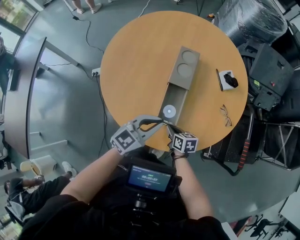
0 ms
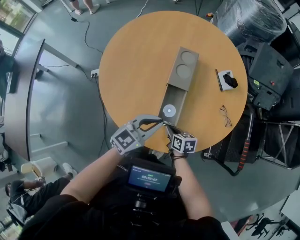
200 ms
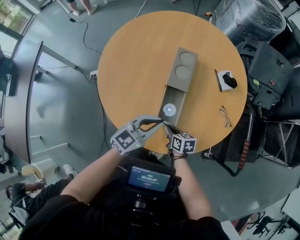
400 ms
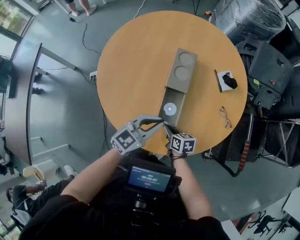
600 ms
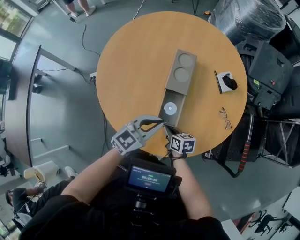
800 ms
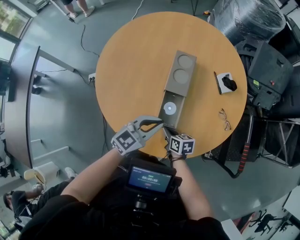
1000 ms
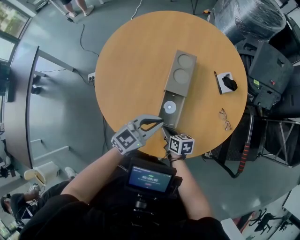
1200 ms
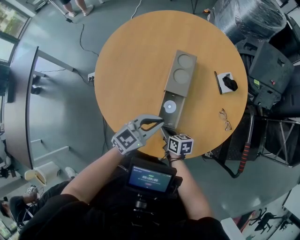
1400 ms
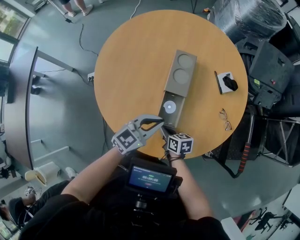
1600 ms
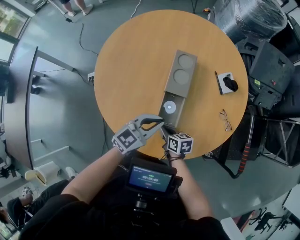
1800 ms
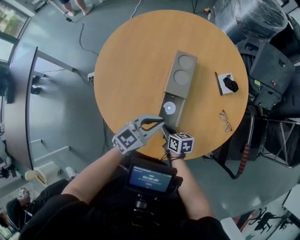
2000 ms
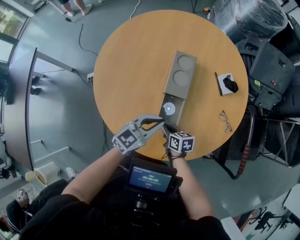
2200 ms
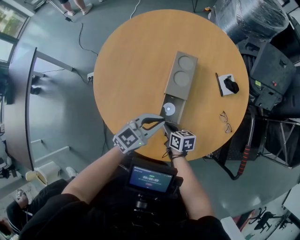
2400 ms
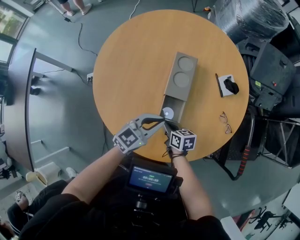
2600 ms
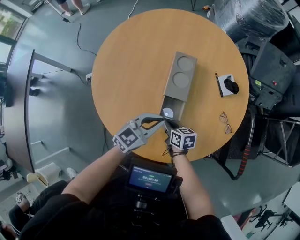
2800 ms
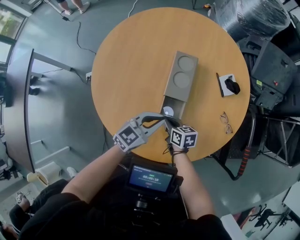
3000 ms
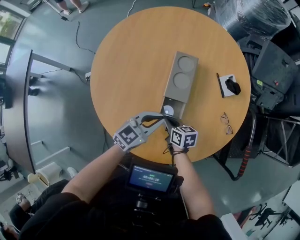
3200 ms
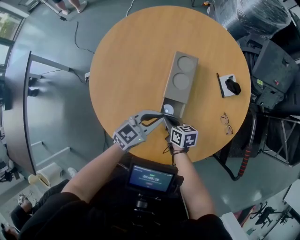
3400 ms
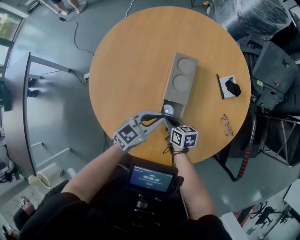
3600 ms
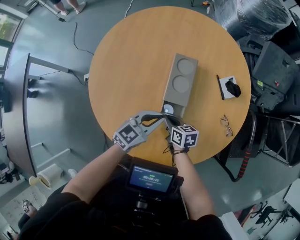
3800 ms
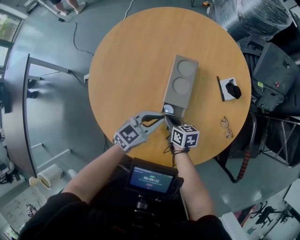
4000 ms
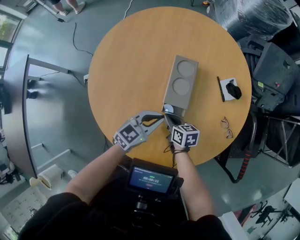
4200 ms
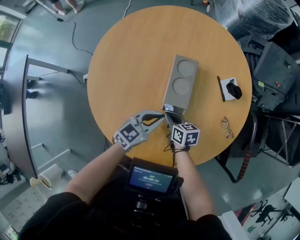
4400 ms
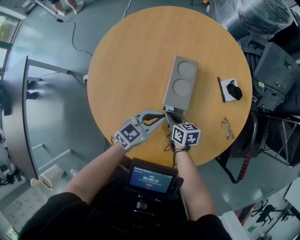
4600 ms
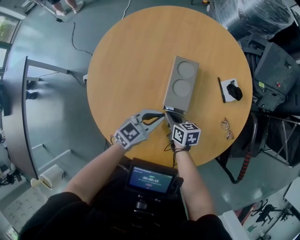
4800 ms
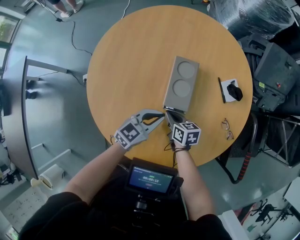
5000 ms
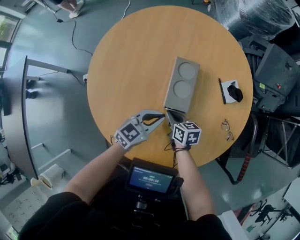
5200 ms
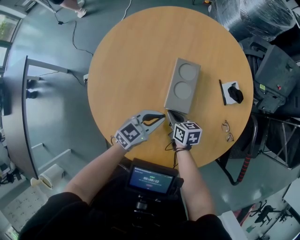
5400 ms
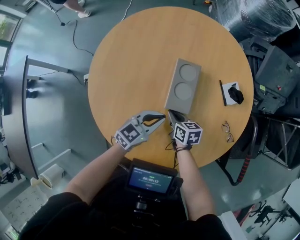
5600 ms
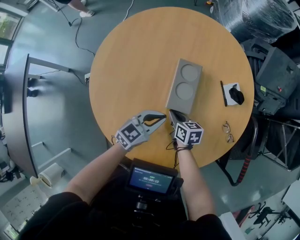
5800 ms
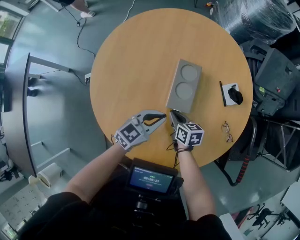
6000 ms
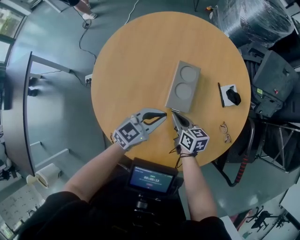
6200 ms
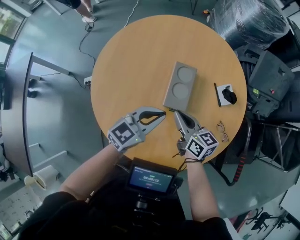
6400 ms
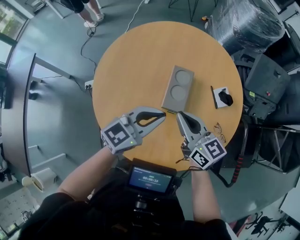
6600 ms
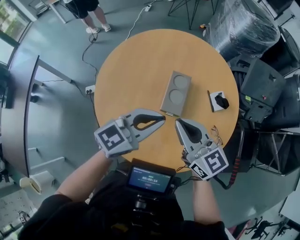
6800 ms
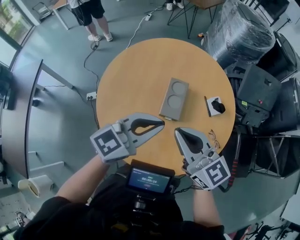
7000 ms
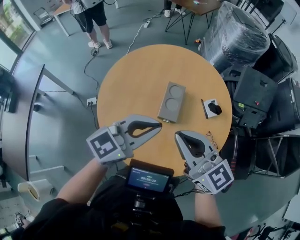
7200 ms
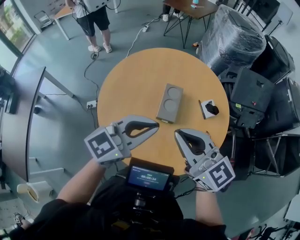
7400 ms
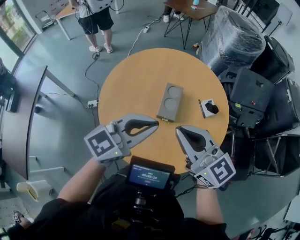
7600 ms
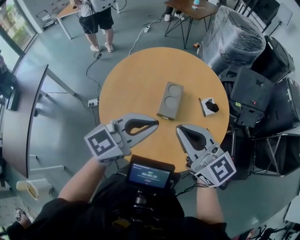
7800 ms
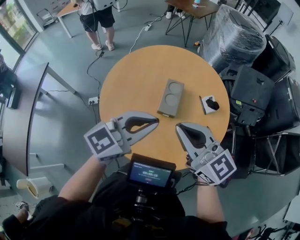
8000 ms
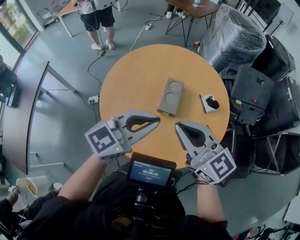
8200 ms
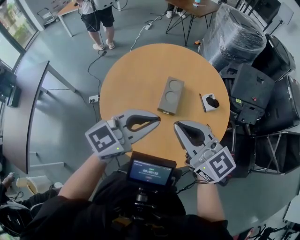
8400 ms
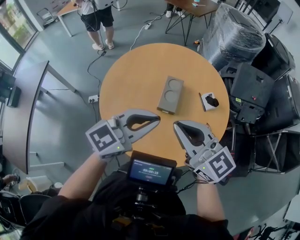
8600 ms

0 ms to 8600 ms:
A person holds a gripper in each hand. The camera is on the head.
0 ms to 1400 ms: The left gripper moves forward, about 5 cm; the right gripper shifts by approximately 5 cm.
1400 ms to 2800 ms: The right gripper is displaced forward by roughly 10 cm; the left gripper ends up some 5 cm from where it was.
2800 ms to 4400 ms: Both grippers travel together forward, roughly 10 cm.
4400 ms to 5800 ms: The grippers make only small movements.
5800 ms to 7200 ms: Both grippers move upward, approximately 40 cm. The right gripper points its fingers some 40 degrees further upward, while the left gripper swivels some 20 degrees.
7200 ms to 8600 ms: The two grippers go roughly 5 cm backward.

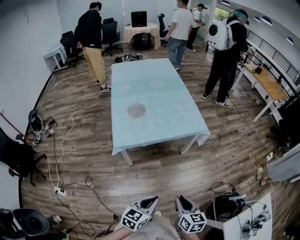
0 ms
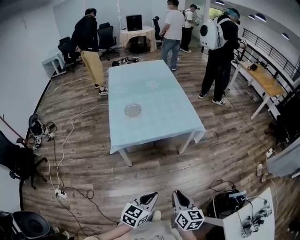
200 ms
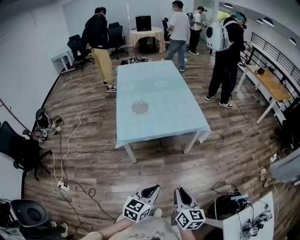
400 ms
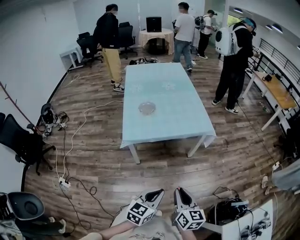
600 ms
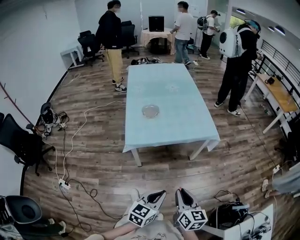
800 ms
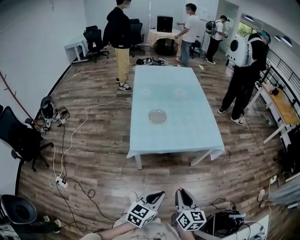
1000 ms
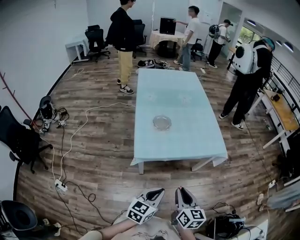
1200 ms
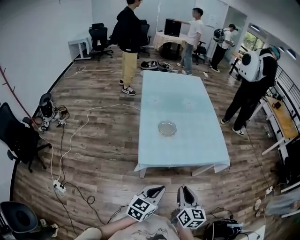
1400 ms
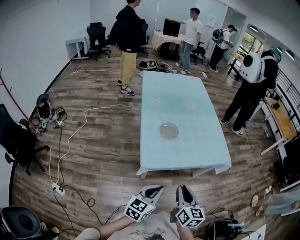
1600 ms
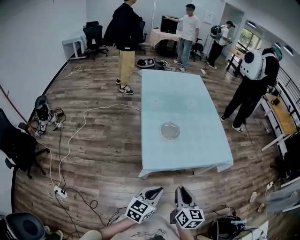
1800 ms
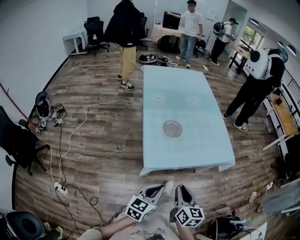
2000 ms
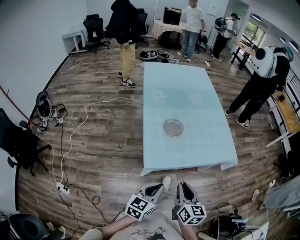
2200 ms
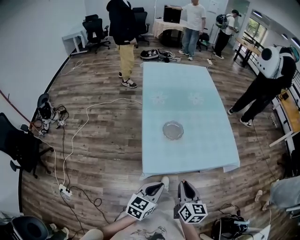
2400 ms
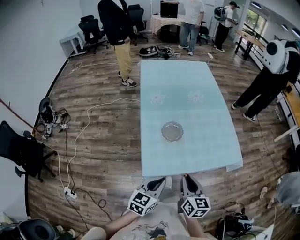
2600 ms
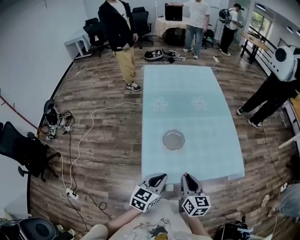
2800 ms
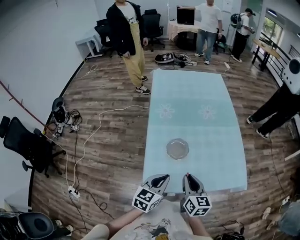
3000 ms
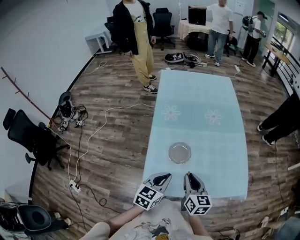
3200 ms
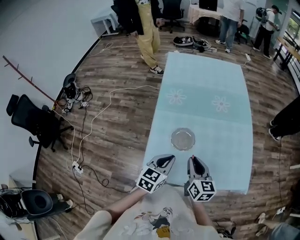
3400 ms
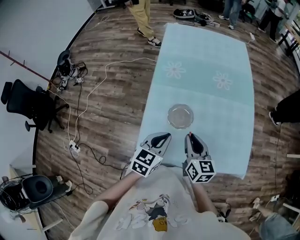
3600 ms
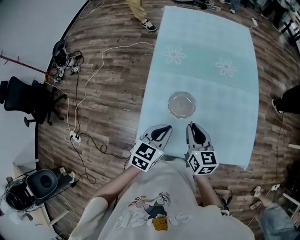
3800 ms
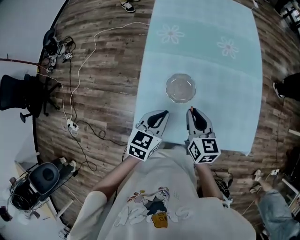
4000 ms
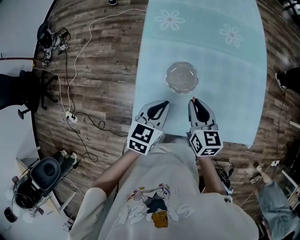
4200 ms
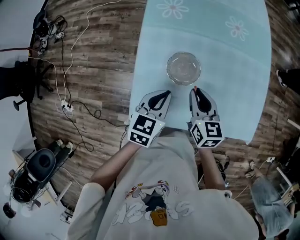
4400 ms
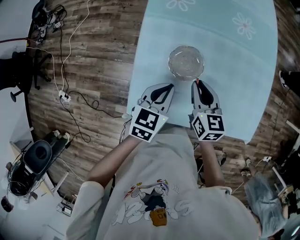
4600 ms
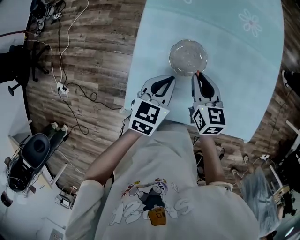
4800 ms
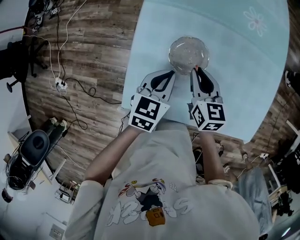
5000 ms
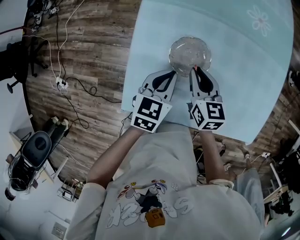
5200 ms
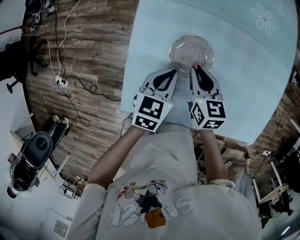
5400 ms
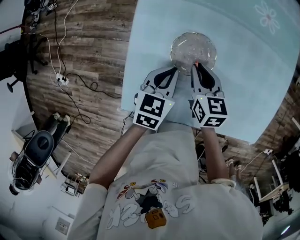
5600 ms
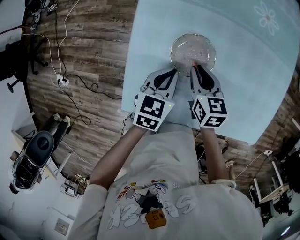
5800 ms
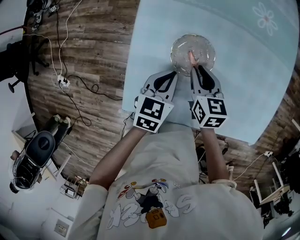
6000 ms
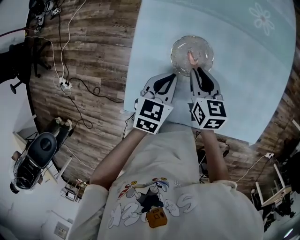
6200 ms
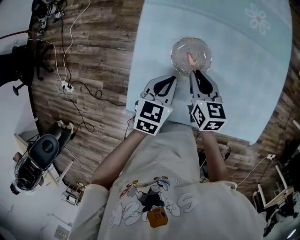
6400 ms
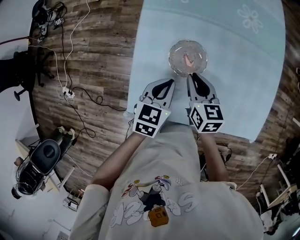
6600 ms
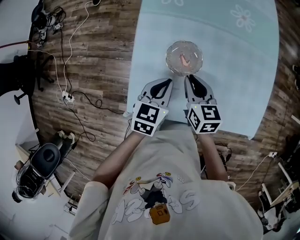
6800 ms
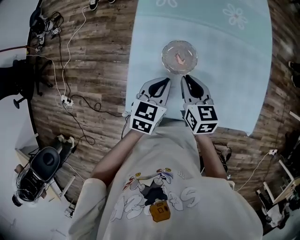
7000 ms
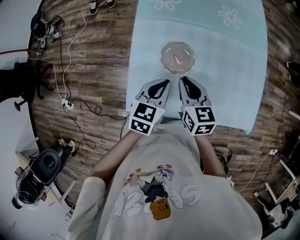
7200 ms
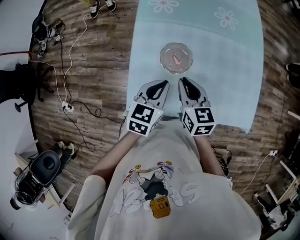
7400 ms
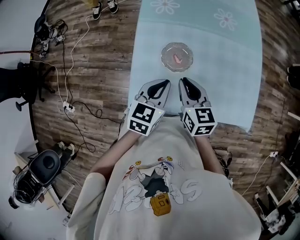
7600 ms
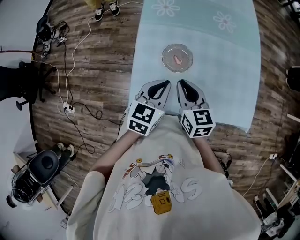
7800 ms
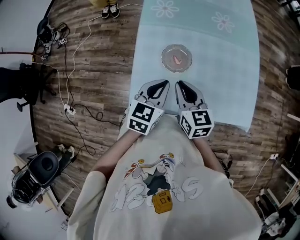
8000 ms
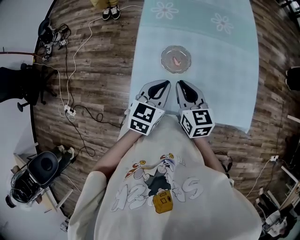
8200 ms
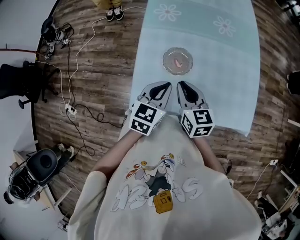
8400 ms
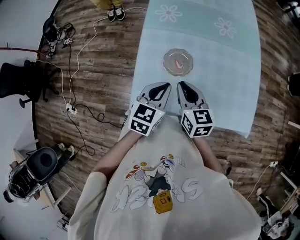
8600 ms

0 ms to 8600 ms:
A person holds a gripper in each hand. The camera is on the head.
0 ms to 1400 ms: The grippers both shift to the left and forward by roughly 25 cm.
1400 ms to 2800 ms: Both grippers travel together forward, some 25 cm.
2800 ms to 4400 ms: The grippers both shift forward and downward by roughly 20 cm. The right gripper changes its angle by approximately 20 degrees.
4400 ms to 5800 ms: The grippers both shift downward by about 15 cm.
5800 ms to 7200 ms: The left gripper heads upward, covering some 10 cm, while the right gripper heads upward and backward, covering some 15 cm.
7200 ms to 8600 ms: The left gripper is displaced upward by about 5 cm. Meanwhile the right gripper changes place by some 5 cm.

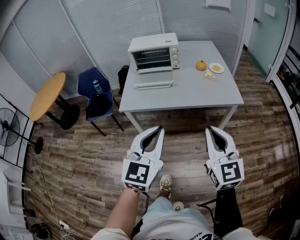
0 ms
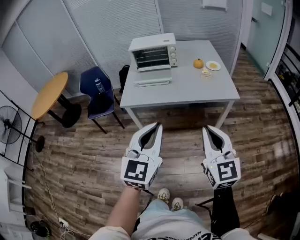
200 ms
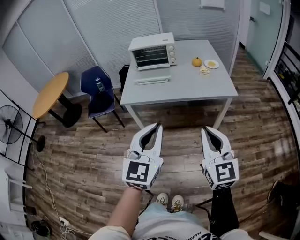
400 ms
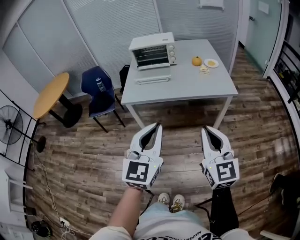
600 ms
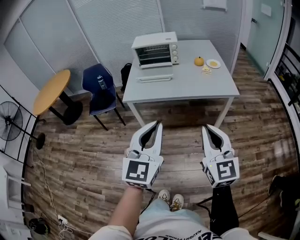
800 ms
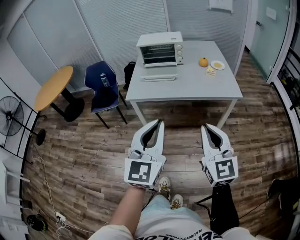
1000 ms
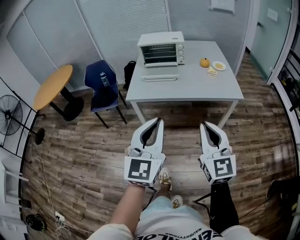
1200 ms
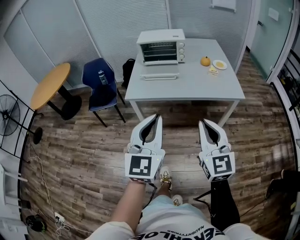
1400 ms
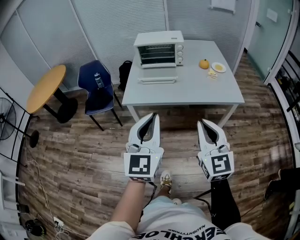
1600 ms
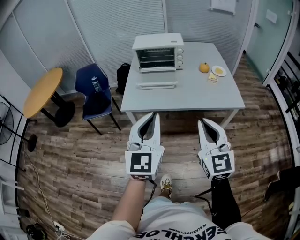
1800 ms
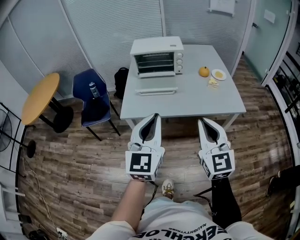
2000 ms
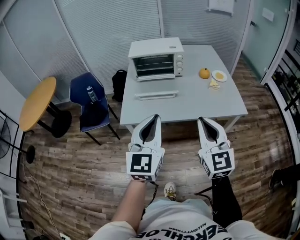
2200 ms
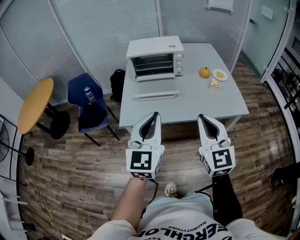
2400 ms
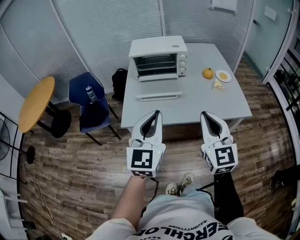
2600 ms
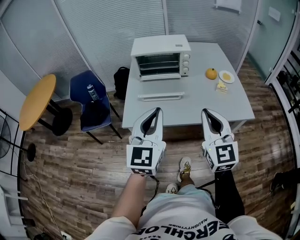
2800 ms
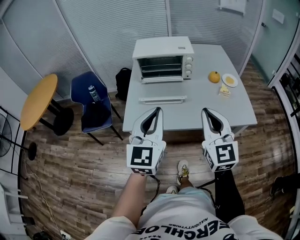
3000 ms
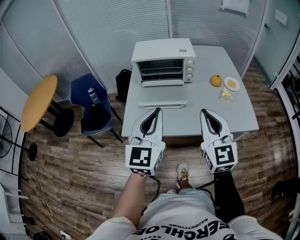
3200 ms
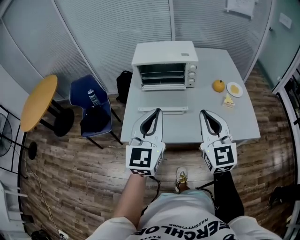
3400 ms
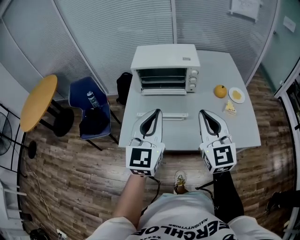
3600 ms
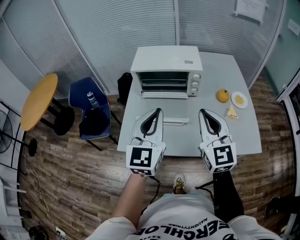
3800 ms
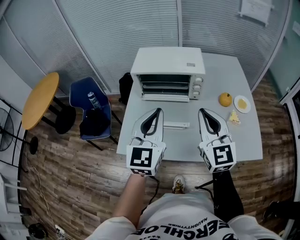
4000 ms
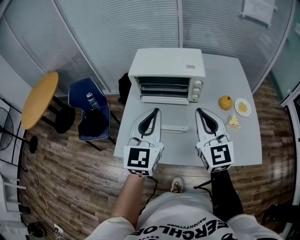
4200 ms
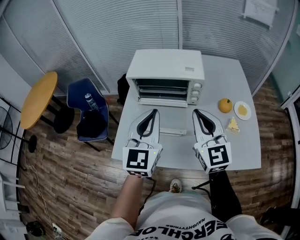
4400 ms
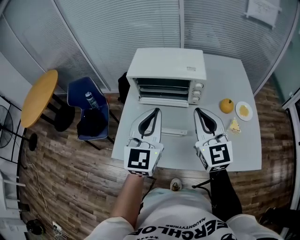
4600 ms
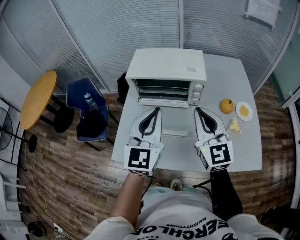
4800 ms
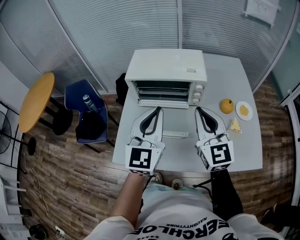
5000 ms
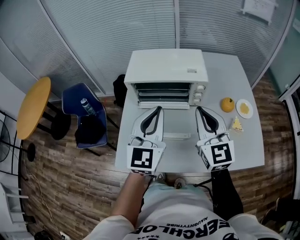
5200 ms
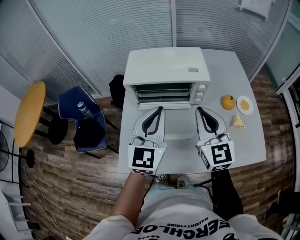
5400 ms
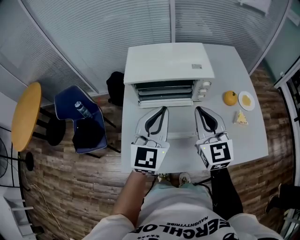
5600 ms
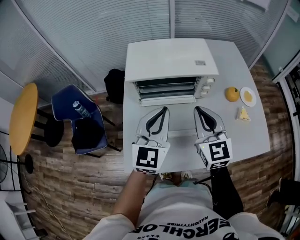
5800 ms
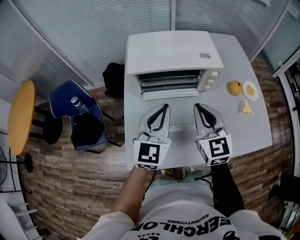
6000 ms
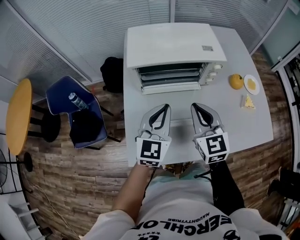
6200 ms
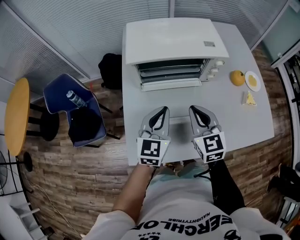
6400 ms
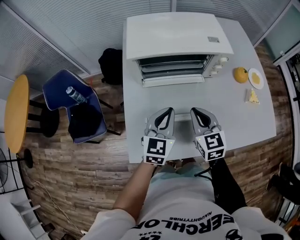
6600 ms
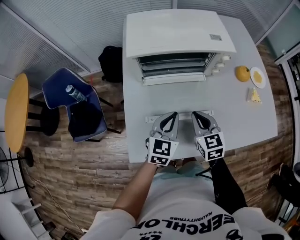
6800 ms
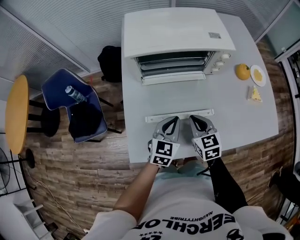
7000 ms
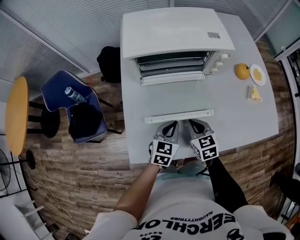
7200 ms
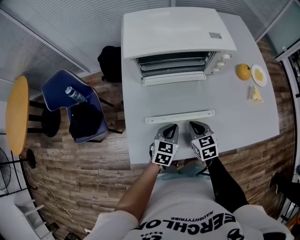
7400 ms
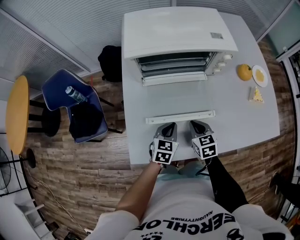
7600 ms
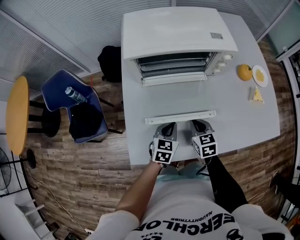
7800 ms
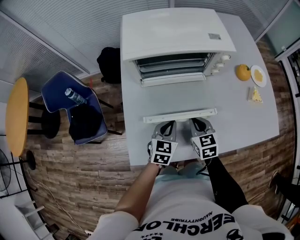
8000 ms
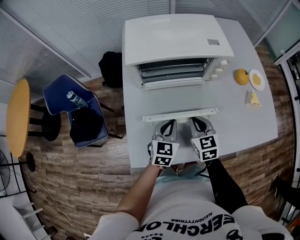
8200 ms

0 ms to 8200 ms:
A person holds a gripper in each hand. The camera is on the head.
0 ms to 1600 ms: Both grippers move to the left, about 5 cm. The left gripper travels backward and back again, roughly 10 cm each way. The right gripper reaches roughly 10 cm backward, then returns.
1600 ms to 3200 ms: Both grippers move forward, roughly 30 cm.
3200 ms to 5000 ms: Both grippers move forward, approximately 25 cm.
5000 ms to 6600 ms: The right gripper shifts approximately 25 cm downward and to the left, and rotates about 30 degrees, while the left gripper shifts approximately 20 cm downward, and turns by approximately 30 degrees.
6600 ms to 8200 ms: The grippers both shift downward by about 10 cm.
